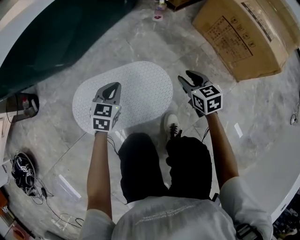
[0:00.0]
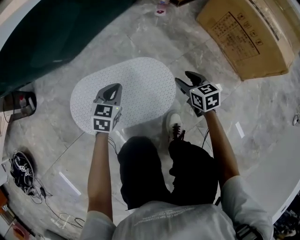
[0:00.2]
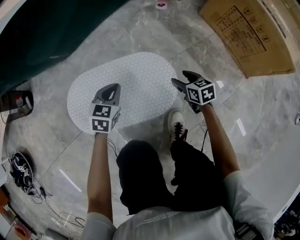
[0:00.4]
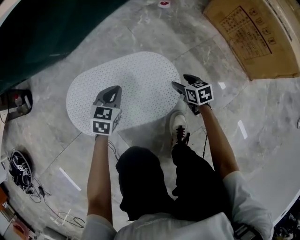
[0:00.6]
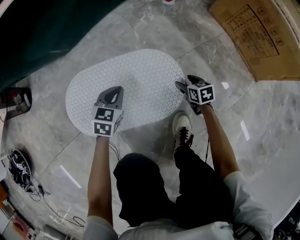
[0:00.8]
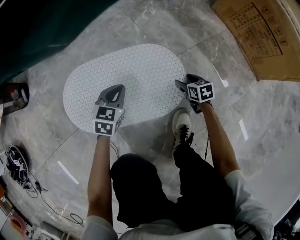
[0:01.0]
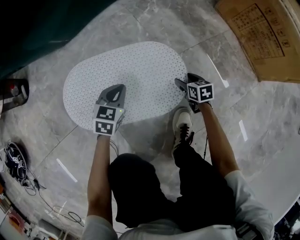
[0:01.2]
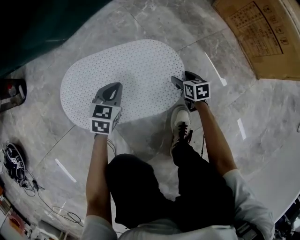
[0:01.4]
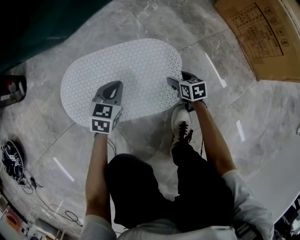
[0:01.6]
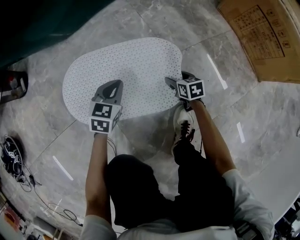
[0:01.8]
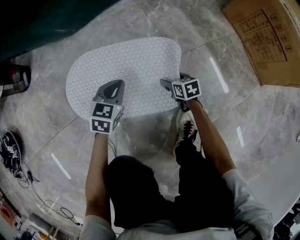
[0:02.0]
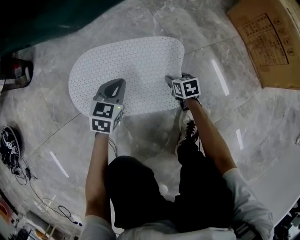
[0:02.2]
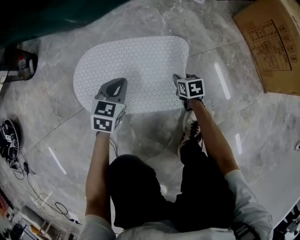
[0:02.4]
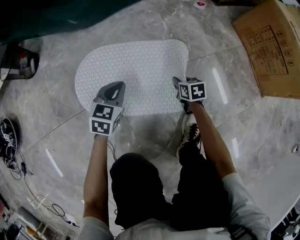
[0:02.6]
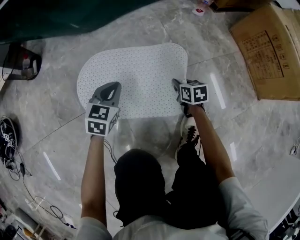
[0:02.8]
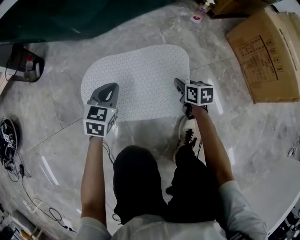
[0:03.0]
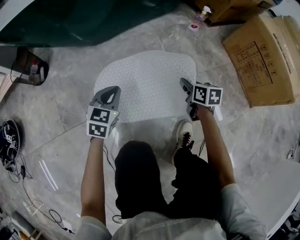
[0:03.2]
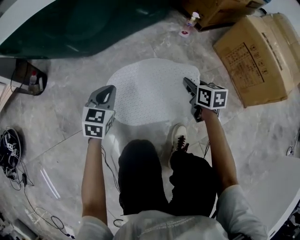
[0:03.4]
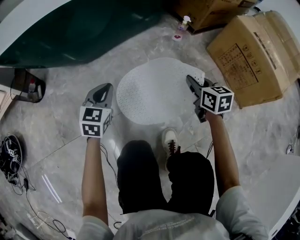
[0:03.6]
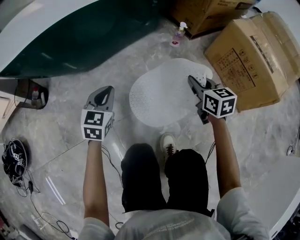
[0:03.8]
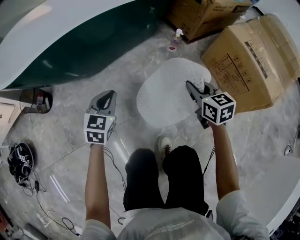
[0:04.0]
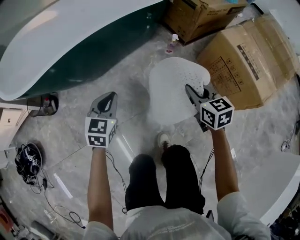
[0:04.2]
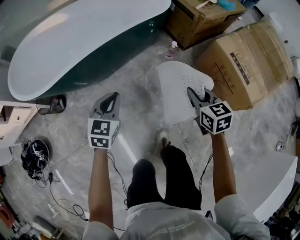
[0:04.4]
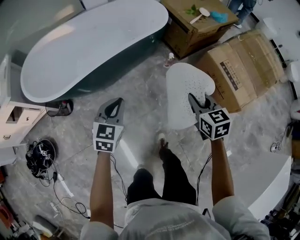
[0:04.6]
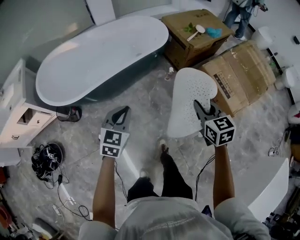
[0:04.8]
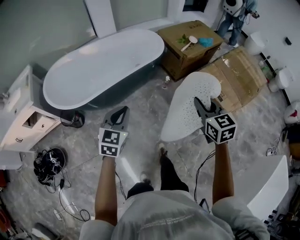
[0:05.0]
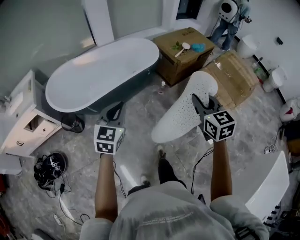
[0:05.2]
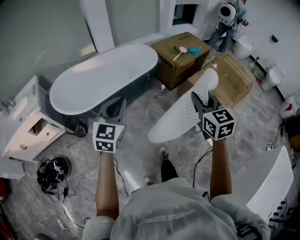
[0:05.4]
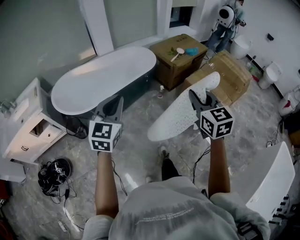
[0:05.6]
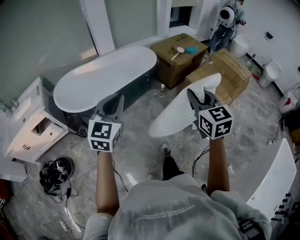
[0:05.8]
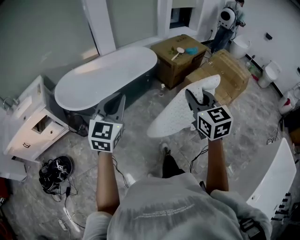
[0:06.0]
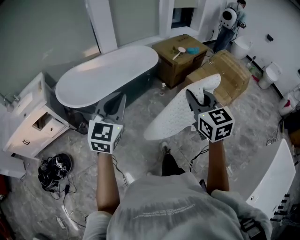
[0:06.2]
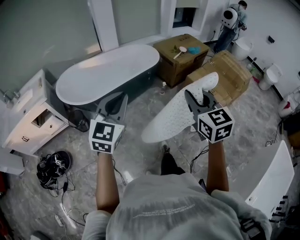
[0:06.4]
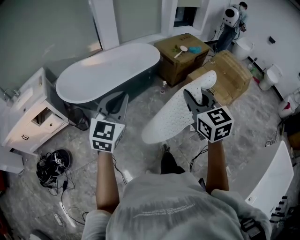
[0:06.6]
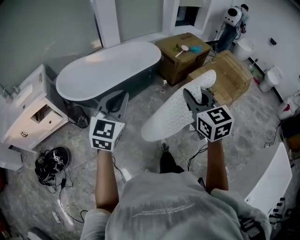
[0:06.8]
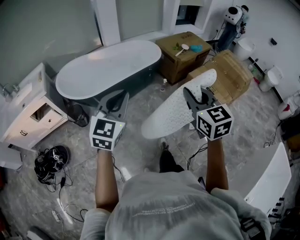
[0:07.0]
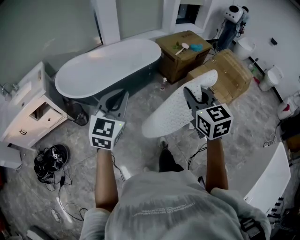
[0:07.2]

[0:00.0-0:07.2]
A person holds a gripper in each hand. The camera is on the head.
0:00.0 to 0:01.4: The right gripper is displaced downward by approximately 25 cm, and opens up; the left gripper goes about 15 cm downward.
0:01.4 to 0:02.8: The grippers both shift to the left and upward by some 15 cm. The right gripper closes up.
0:02.8 to 0:04.4: The two grippers go some 50 cm upward. The right gripper turns by some 20 degrees.
0:04.4 to 0:05.8: The grippers both shift upward and backward by roughly 60 cm. The left gripper changes its angle by approximately 20 degrees. Meanwhile the right gripper turns by about 30 degrees.
0:05.8 to 0:07.2: The left gripper ends up some 5 cm from where it was. Meanwhile the right gripper shifts by approximately 5 cm.

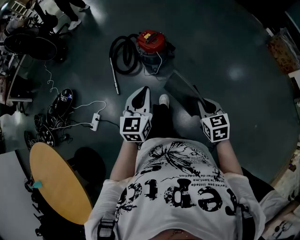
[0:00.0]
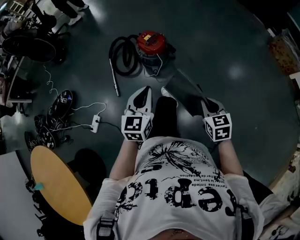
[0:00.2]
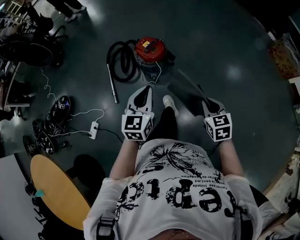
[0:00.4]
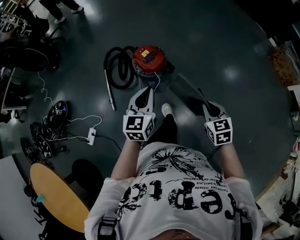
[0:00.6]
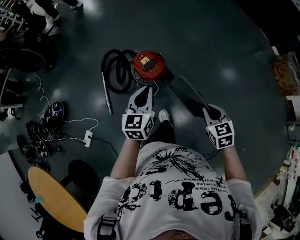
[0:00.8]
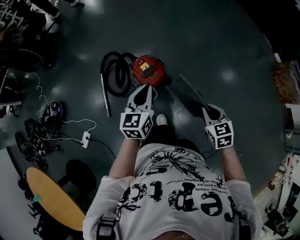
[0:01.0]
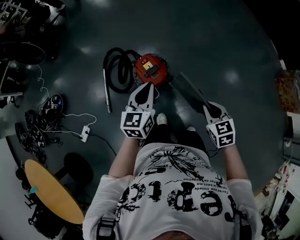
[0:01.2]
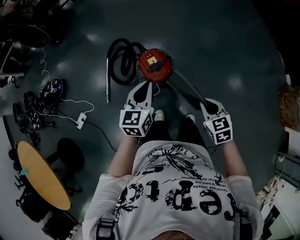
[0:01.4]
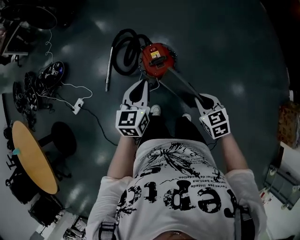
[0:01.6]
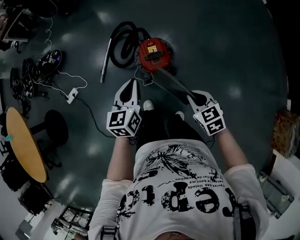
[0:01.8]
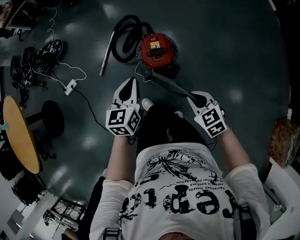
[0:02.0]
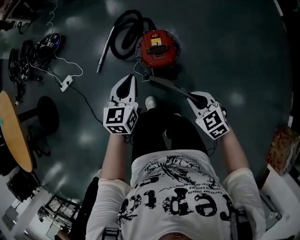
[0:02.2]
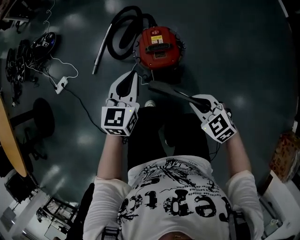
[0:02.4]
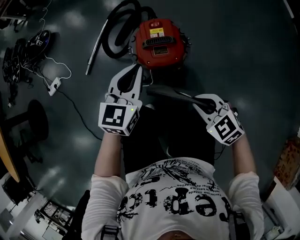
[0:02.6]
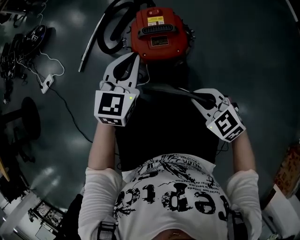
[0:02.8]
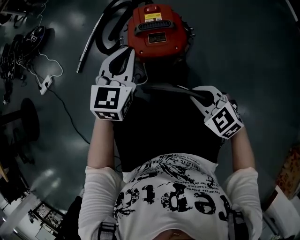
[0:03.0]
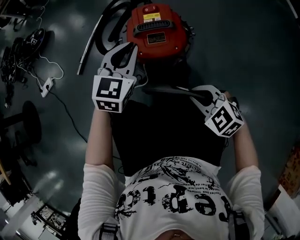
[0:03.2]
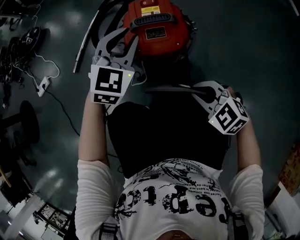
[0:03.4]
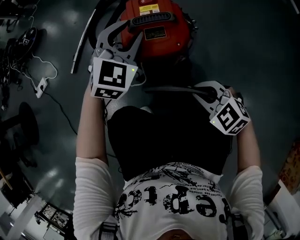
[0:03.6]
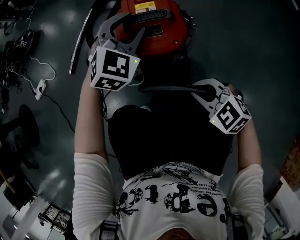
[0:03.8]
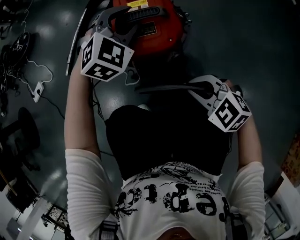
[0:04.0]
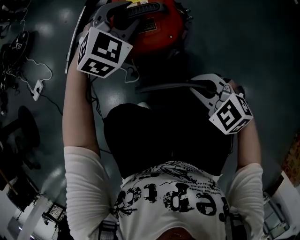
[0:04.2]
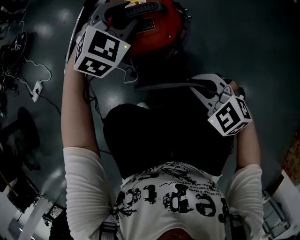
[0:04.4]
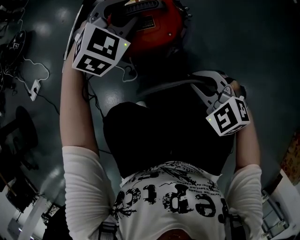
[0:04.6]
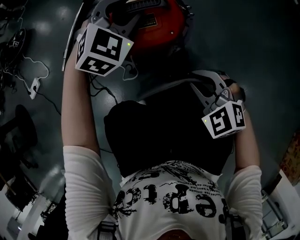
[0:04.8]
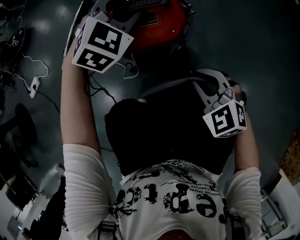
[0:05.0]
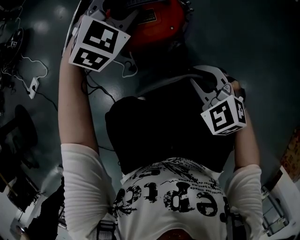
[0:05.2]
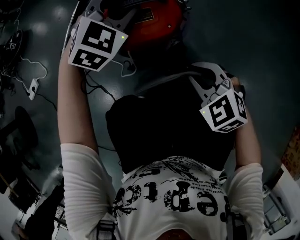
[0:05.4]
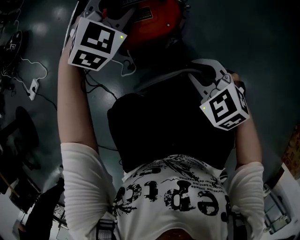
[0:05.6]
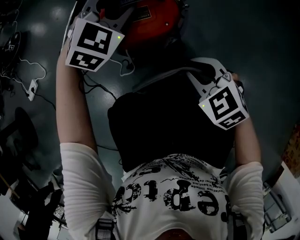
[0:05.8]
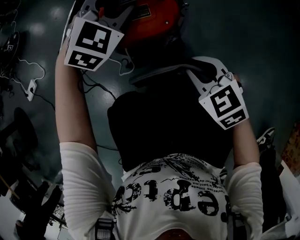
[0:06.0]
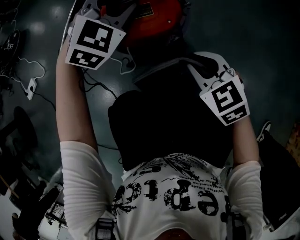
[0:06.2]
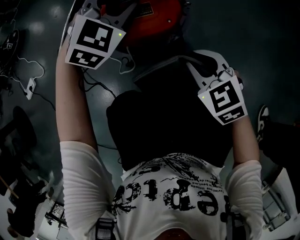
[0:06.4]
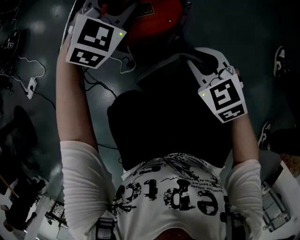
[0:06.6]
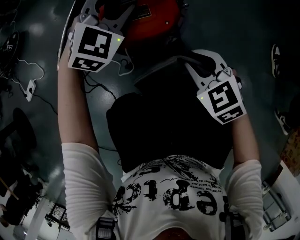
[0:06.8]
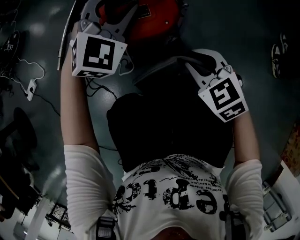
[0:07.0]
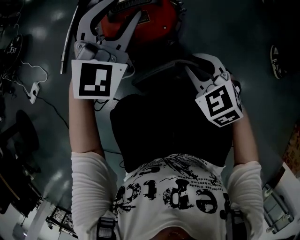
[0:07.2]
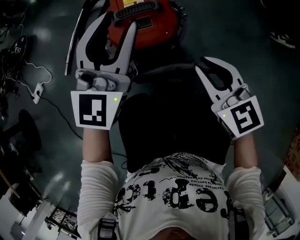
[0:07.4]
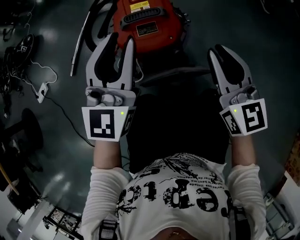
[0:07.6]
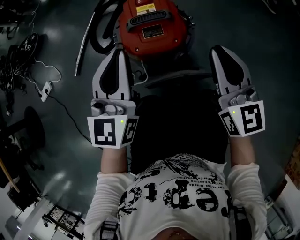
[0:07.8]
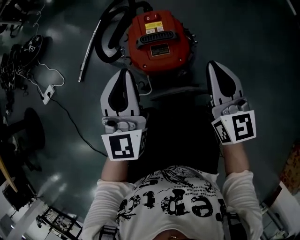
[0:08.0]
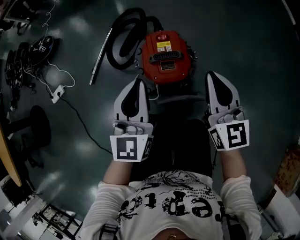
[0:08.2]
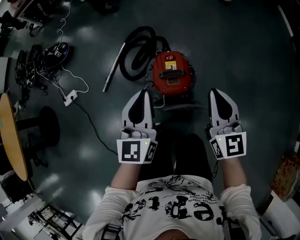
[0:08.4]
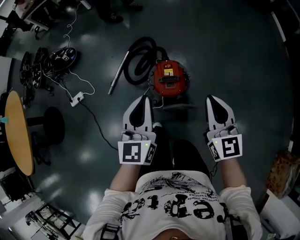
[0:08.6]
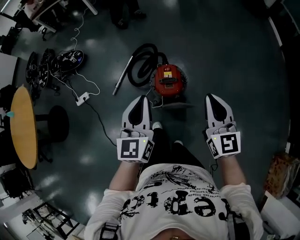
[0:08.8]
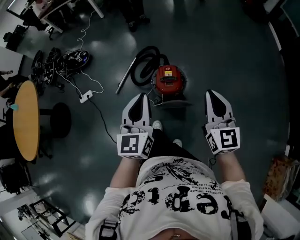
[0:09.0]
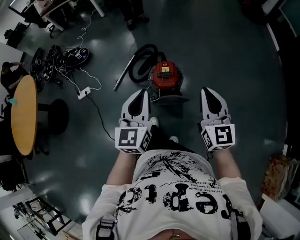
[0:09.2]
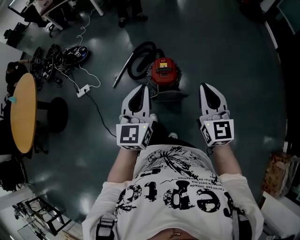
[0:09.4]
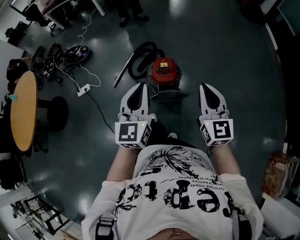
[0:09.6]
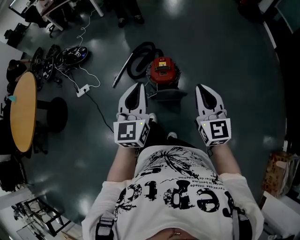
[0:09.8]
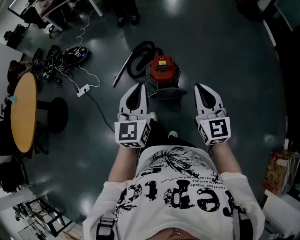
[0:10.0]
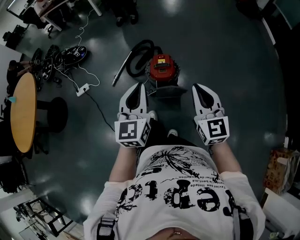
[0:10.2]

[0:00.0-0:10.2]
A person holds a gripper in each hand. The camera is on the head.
0:00.0 to 0:01.4: Both grippers are carried forward, roughly 50 cm. The right gripper rotates about 20 degrees.
0:01.4 to 0:03.0: Both grippers travel together downward, about 40 cm. The right gripper turns by roughly 60 degrees. The left gripper swivels about 30 degrees.
0:03.0 to 0:04.4: The right gripper moves approximately 5 cm. The left gripper is displaced to the right, forward and downward by approximately 15 cm, rotates approximately 40 degrees, and opens.
0:04.4 to 0:05.8: There are only small adjustments of the grippers.
0:05.8 to 0:07.2: The left gripper is displaced upward and backward by roughly 10 cm, and turns by about 20 degrees.
0:07.2 to 0:08.8: The two grippers go some 60 cm upward. The right gripper tips its fingers upward by some 40 degrees. The left gripper twists about 40 degrees counterclockwise, seen from behind, and closes up.
0:08.8 to 0:10.2: The two grippers go about 15 cm backward.

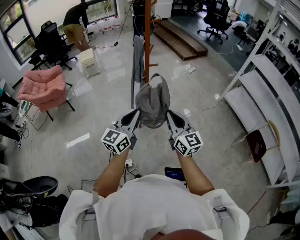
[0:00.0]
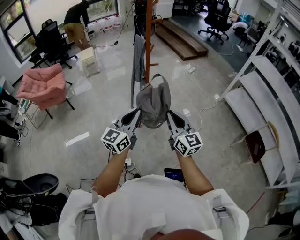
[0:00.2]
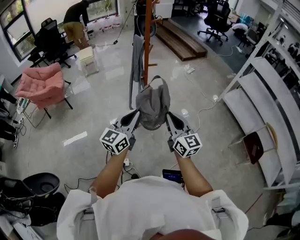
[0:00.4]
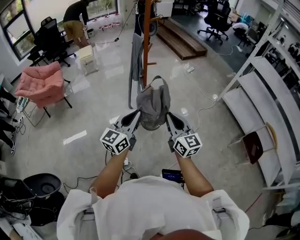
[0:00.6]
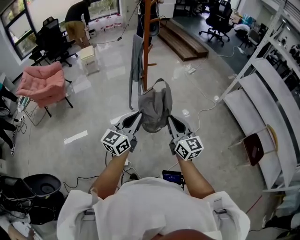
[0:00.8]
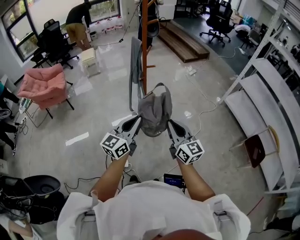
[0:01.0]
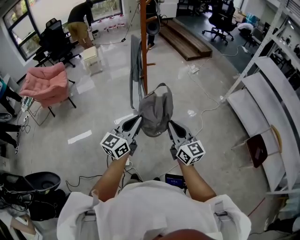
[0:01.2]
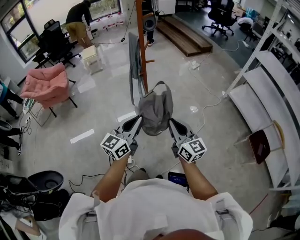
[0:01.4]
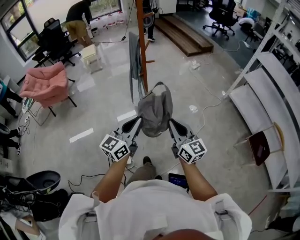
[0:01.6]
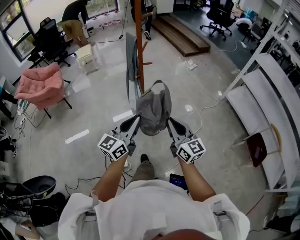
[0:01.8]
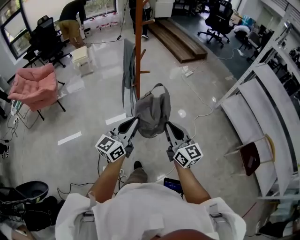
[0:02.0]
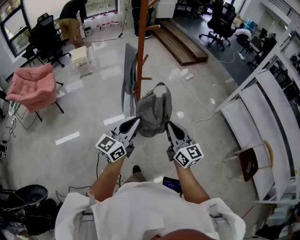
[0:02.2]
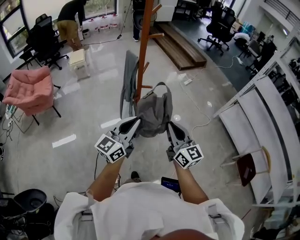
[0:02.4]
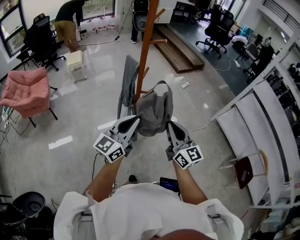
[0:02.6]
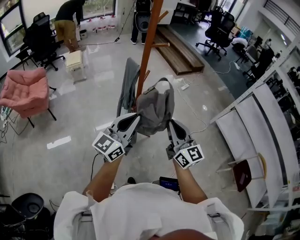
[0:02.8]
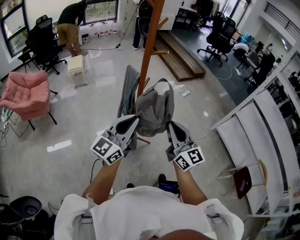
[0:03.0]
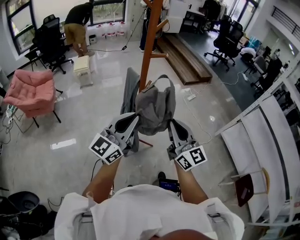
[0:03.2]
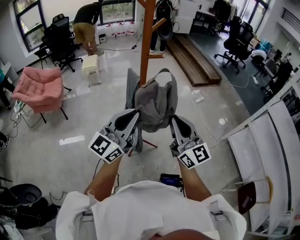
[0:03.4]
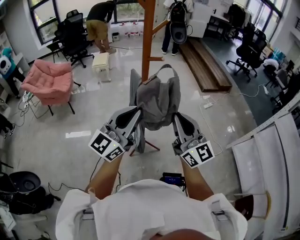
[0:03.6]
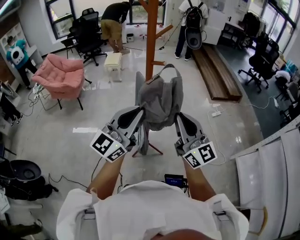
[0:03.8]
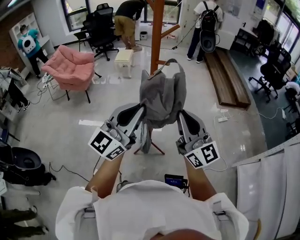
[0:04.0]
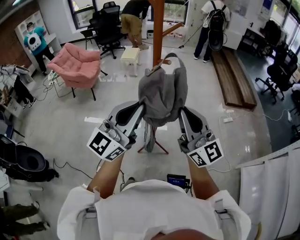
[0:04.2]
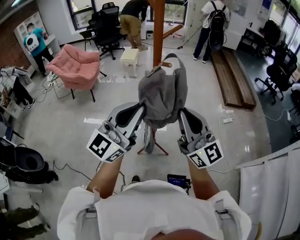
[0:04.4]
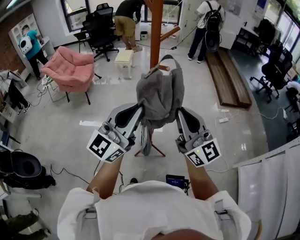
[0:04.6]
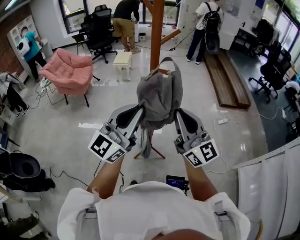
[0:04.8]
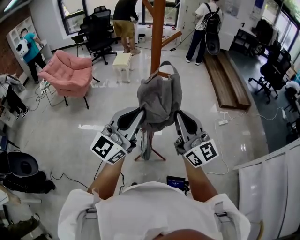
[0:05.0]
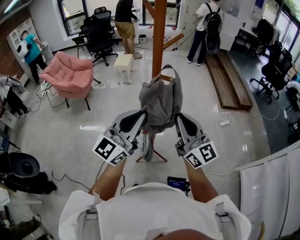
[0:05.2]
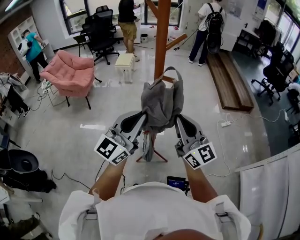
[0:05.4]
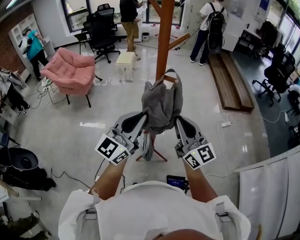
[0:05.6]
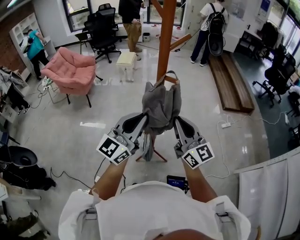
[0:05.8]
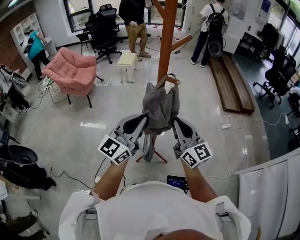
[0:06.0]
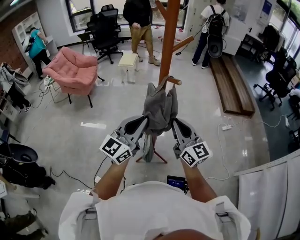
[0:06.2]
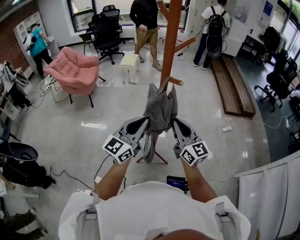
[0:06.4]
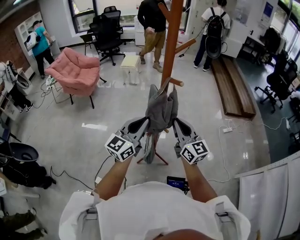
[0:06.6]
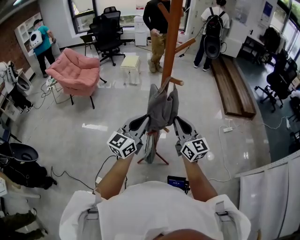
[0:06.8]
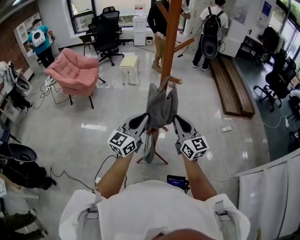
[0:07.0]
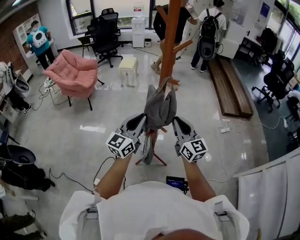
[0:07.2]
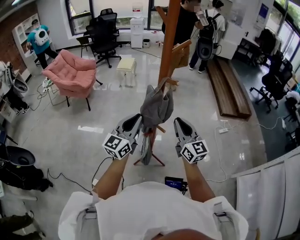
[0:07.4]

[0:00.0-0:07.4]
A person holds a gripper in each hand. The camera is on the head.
0:00.0 to 0:01.4: Both grippers move to the right, roughly 5 cm.
0:01.4 to 0:03.0: Both grippers move forward, some 30 cm.
0:03.0 to 0:04.4: The left gripper heads upward, covering roughly 10 cm, and swivels some 30 degrees. The right gripper moves about 15 cm, and turns by some 40 degrees.
0:04.4 to 0:06.0: Both grippers move forward and downward, about 15 cm.
0:06.0 to 0:07.4: The left gripper heads downward, covering approximately 5 cm.
